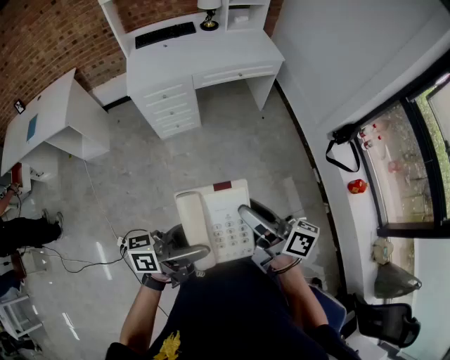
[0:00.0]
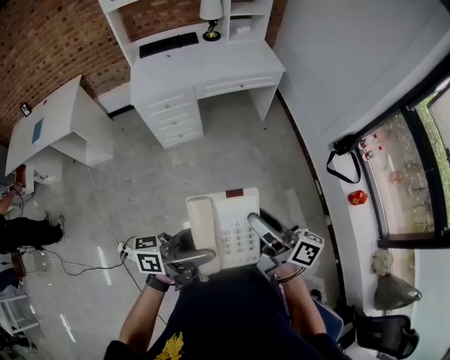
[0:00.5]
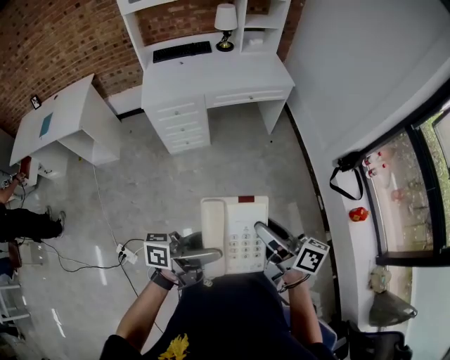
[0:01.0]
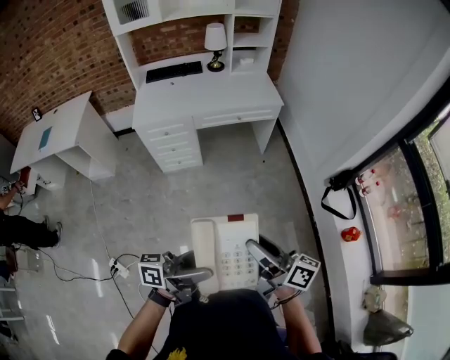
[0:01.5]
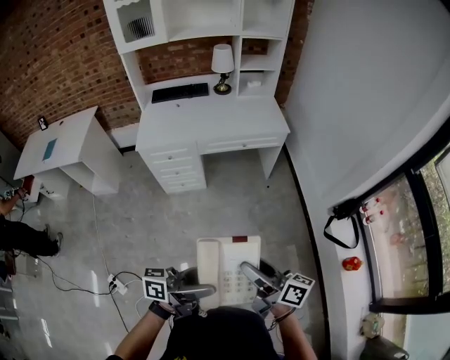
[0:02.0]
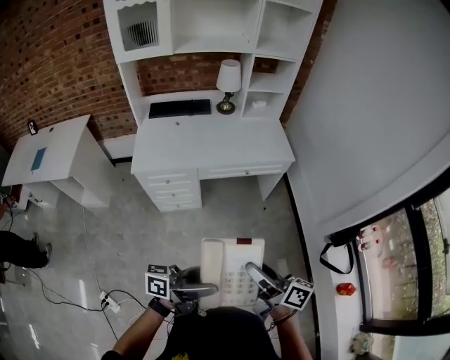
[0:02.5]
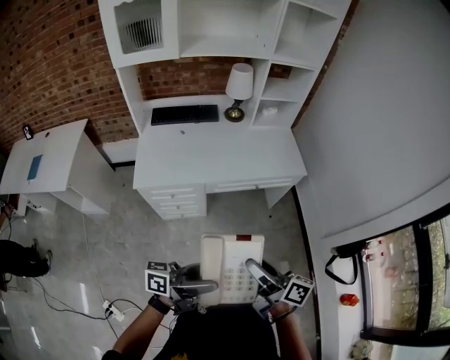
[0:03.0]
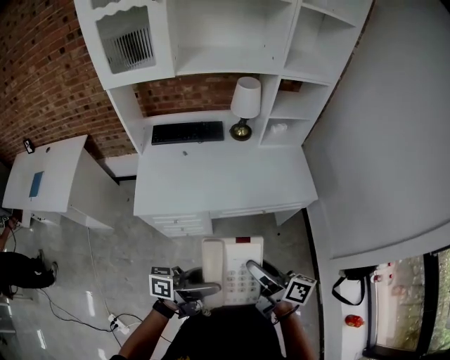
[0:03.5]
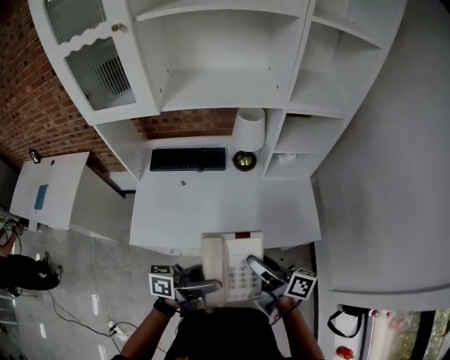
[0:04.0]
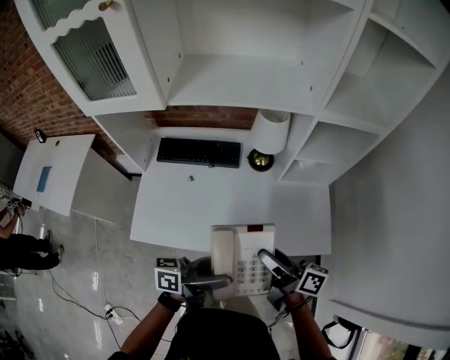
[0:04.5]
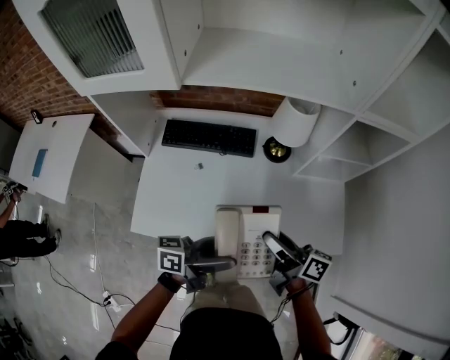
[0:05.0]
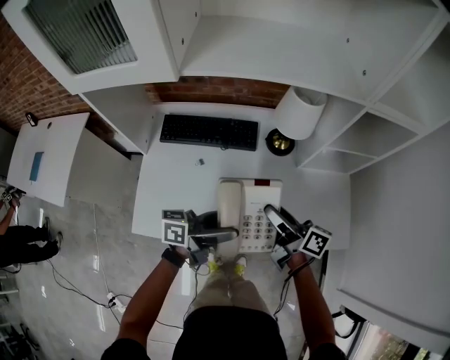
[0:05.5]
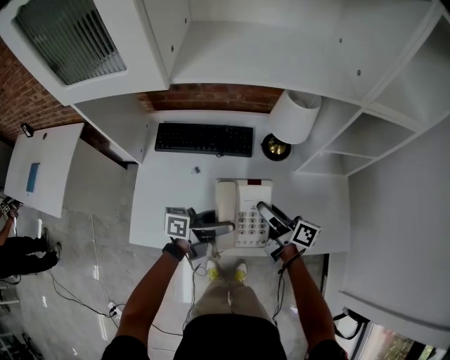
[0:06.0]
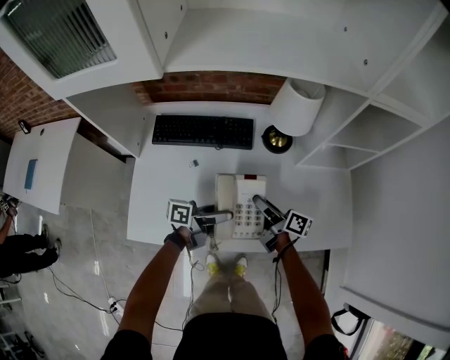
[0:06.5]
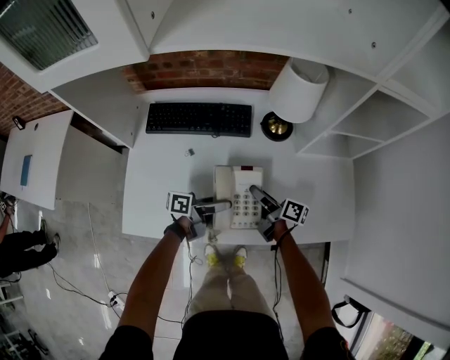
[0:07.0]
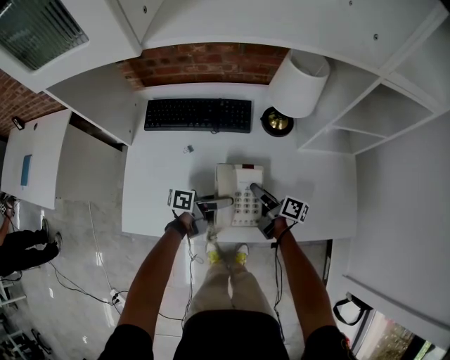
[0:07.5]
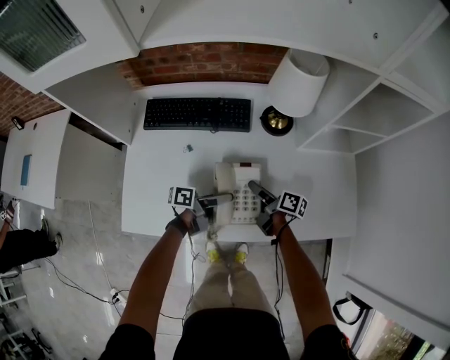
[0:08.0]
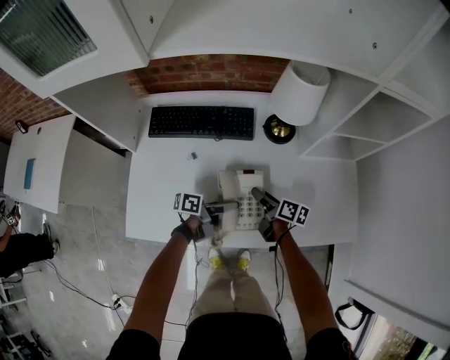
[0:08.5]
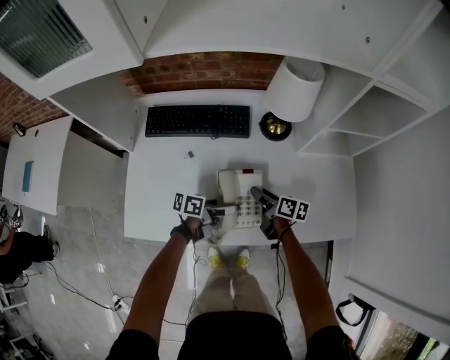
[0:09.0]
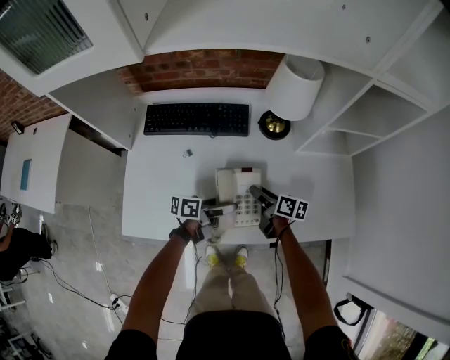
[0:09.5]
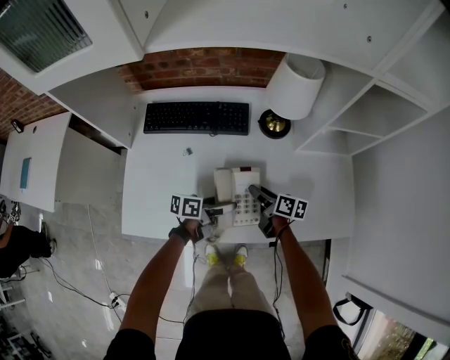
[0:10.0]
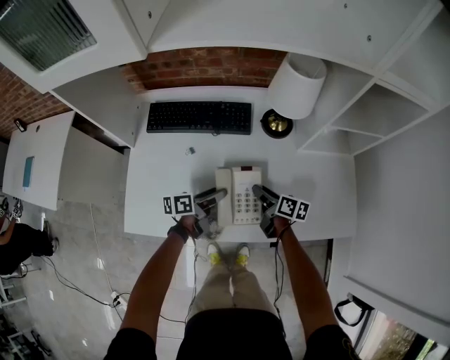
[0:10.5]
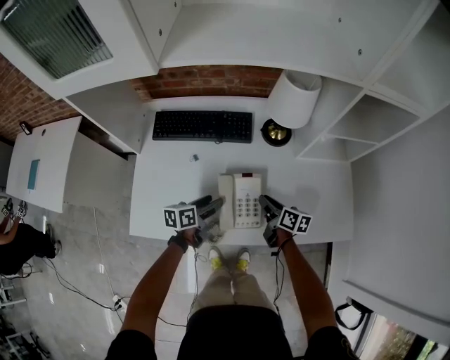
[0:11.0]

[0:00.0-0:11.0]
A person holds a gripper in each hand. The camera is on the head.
0:00.0 to 0:02.0: Both grippers move forward and to the right, approximately 15 cm.
0:02.0 to 0:03.5: The pair of grippers is taken forward and to the left, approximately 50 cm.
0:03.5 to 0:05.5: The pair of grippers is taken forward, approximately 40 cm.
0:05.5 to 0:07.5: The grippers both shift downward by roughly 20 cm. The left gripper rotates roughly 20 degrees.
0:07.5 to 0:09.0: The grippers stay close to where they were, moving slightly.
0:09.0 to 0:11.0: The right gripper closes; the left gripper goes approximately 10 cm to the left, turns by about 30 degrees, and closes up.

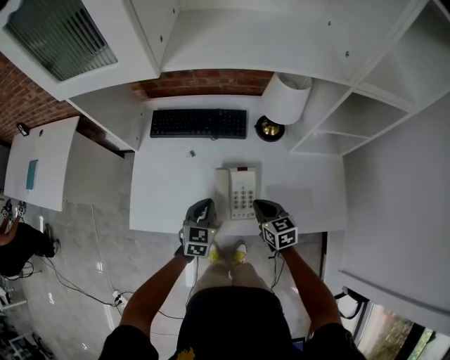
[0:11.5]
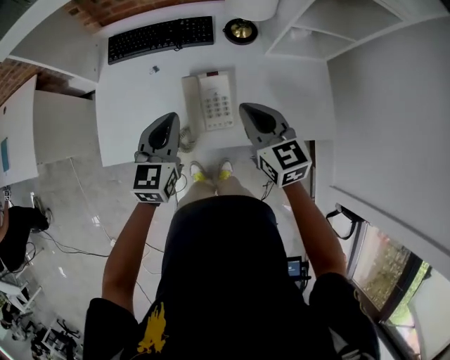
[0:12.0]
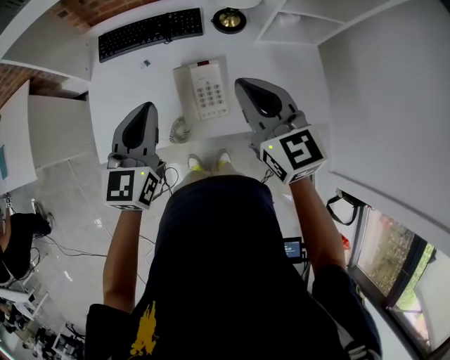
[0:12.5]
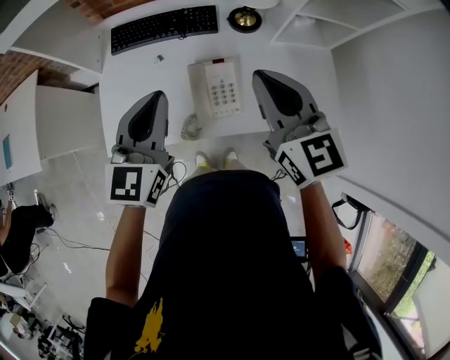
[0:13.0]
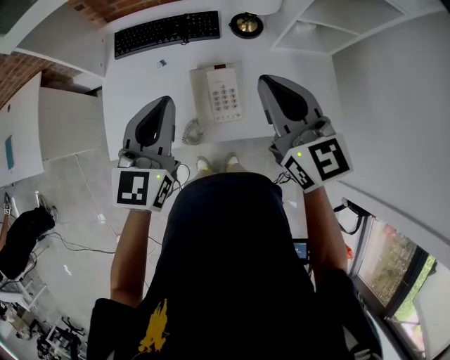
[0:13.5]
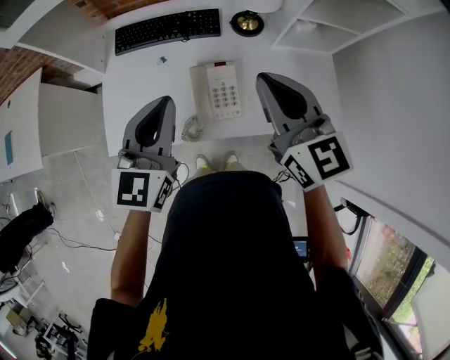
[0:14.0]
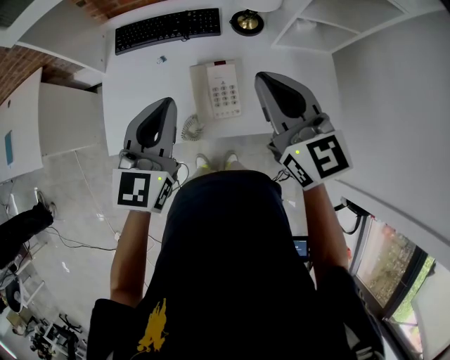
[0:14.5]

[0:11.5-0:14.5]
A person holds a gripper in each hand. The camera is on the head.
0:11.5 to 0:13.0: The two grippers go roughly 25 cm upward. The right gripper rotates roughly 30 degrees. Meanwhile the left gripper changes its angle by some 20 degrees.
0:13.0 to 0:14.5: There are only small adjustments of the grippers.

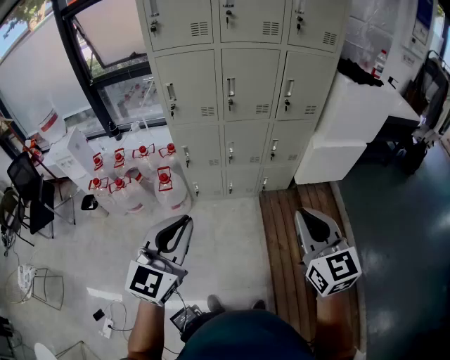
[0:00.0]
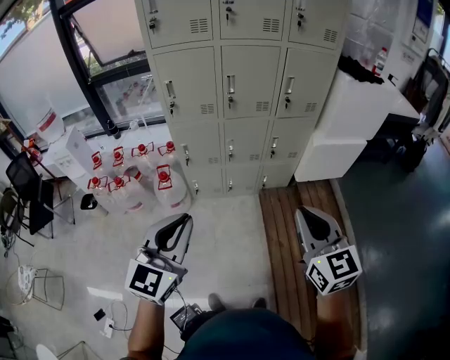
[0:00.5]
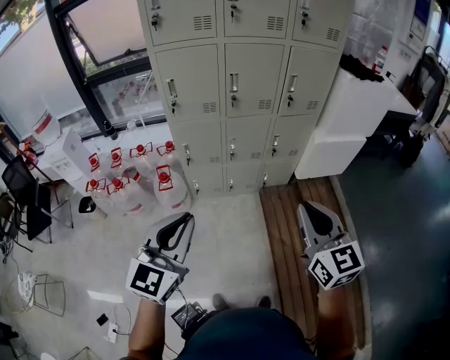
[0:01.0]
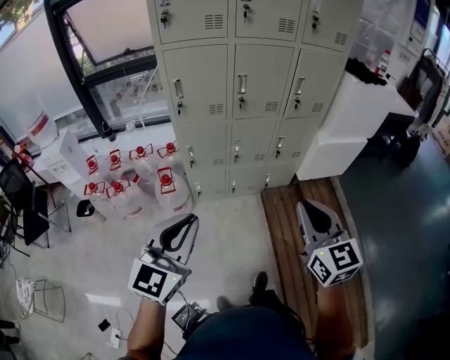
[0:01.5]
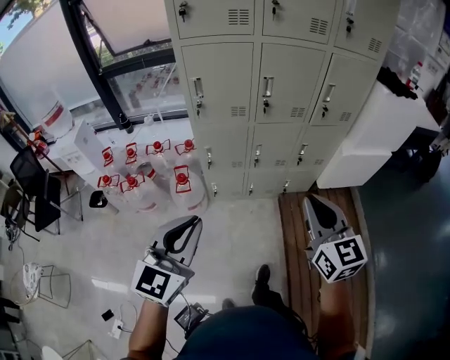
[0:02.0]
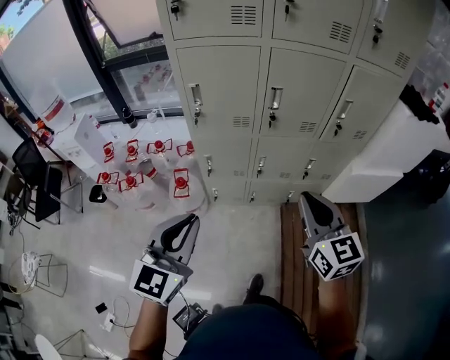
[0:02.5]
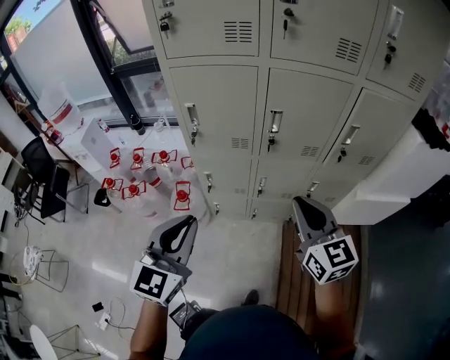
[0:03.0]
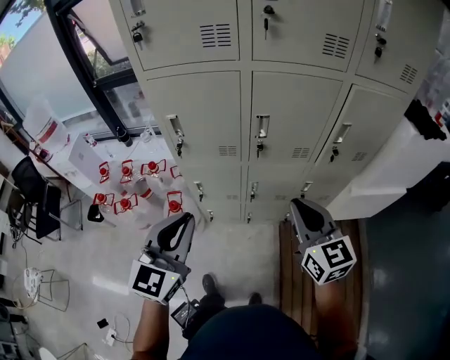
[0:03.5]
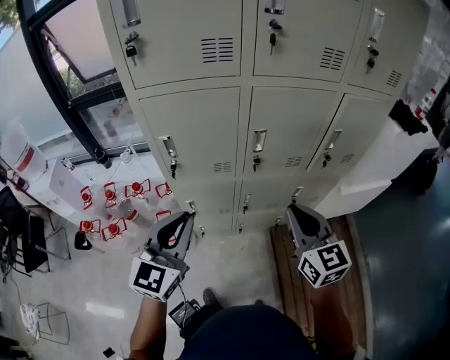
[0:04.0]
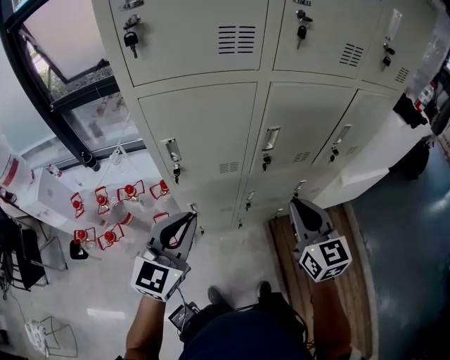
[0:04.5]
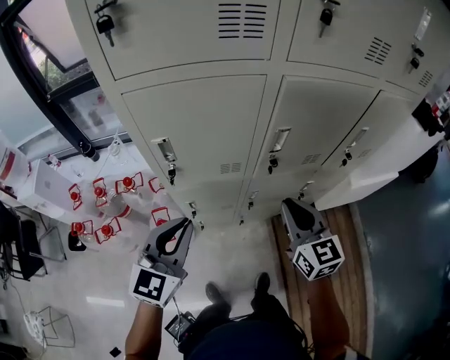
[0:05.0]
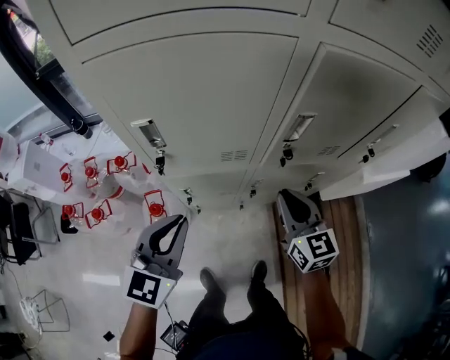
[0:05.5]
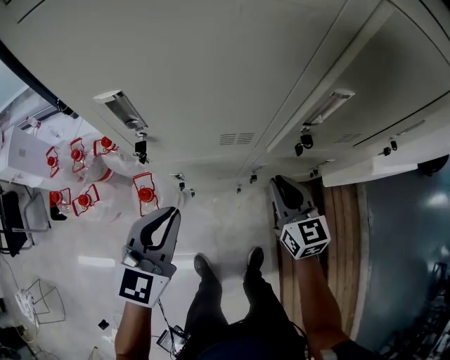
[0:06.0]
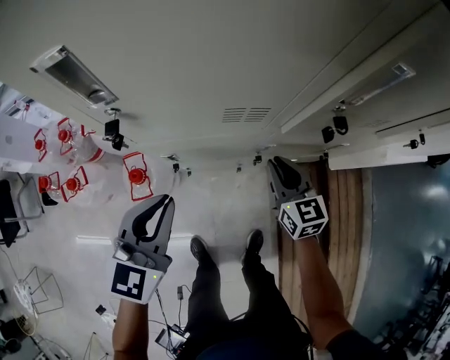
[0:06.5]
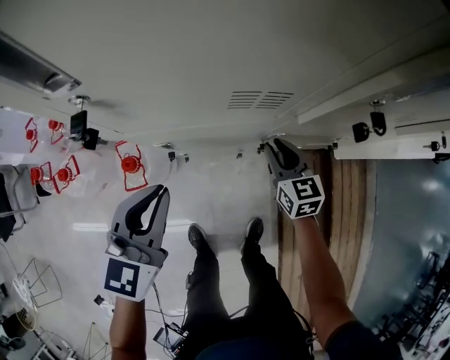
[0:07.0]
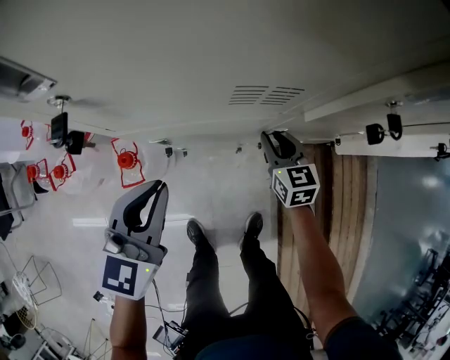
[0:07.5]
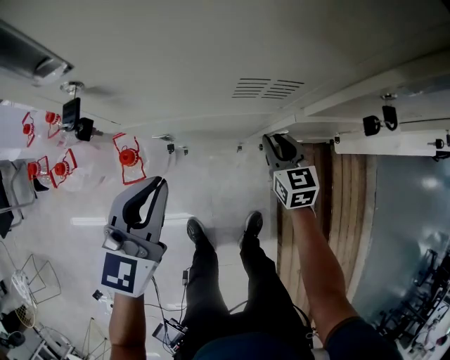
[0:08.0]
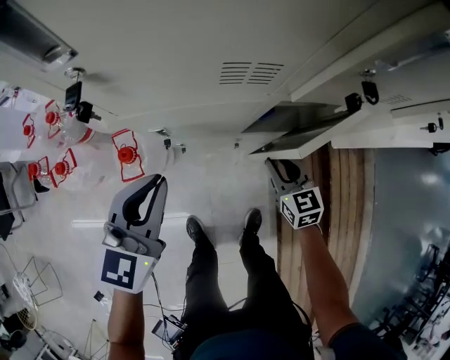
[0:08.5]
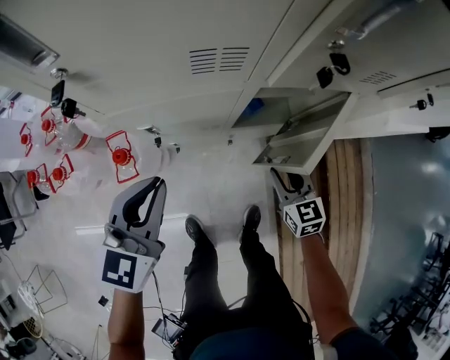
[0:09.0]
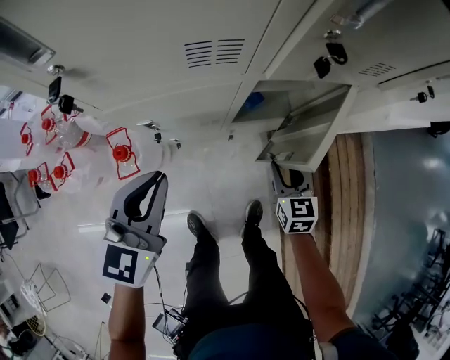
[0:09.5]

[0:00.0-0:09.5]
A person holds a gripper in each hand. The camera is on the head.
0:00.0 to 0:02.0: The left gripper moves to the left and forward, approximately 15 cm, while the right gripper goes about 20 cm forward and to the left.
0:02.0 to 0:04.0: The two grippers go roughly 30 cm forward.
0:04.0 to 0:05.5: The two grippers go some 25 cm downward and forward.
0:05.5 to 0:07.5: The grippers both shift downward by roughly 30 cm.
0:07.5 to 0:09.5: The right gripper is displaced backward and to the right by some 20 cm. The left gripper ends up some 5 cm from where it was.

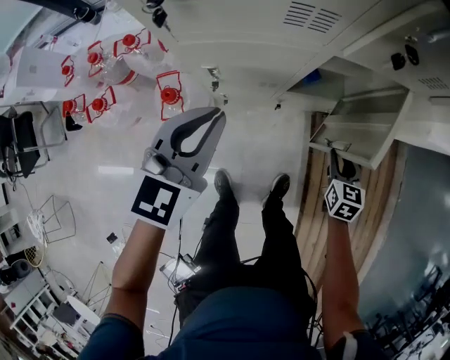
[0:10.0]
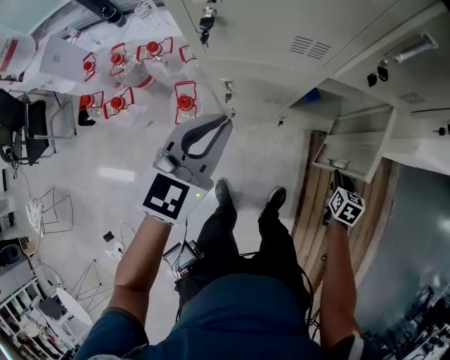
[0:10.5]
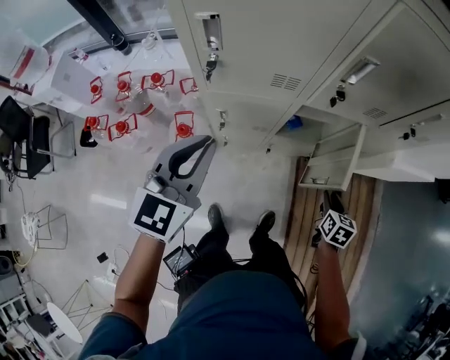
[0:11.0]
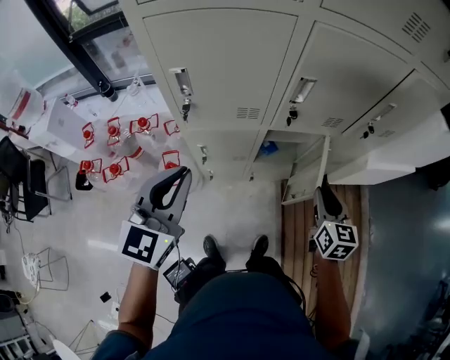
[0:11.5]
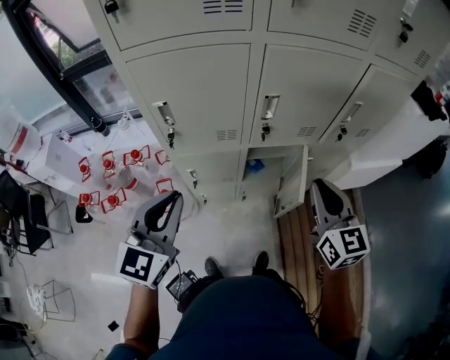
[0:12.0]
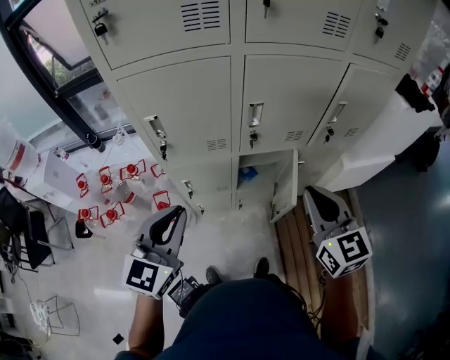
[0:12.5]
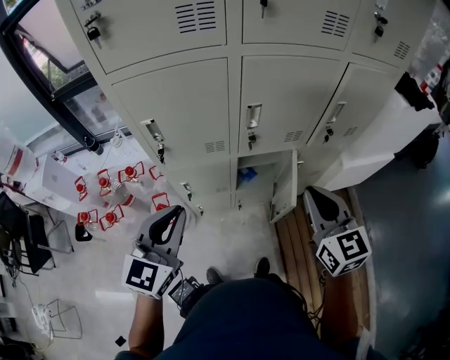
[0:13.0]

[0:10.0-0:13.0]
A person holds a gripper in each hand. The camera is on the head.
0:10.0 to 0:11.5: The two grippers go approximately 30 cm upward.
0:11.5 to 0:13.0: The left gripper heads to the right, covering about 5 cm, while the right gripper is displaced upward by roughly 20 cm, and closes.
